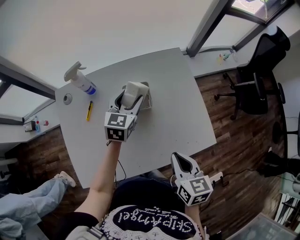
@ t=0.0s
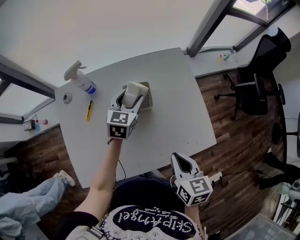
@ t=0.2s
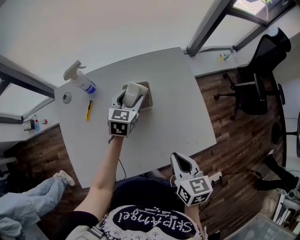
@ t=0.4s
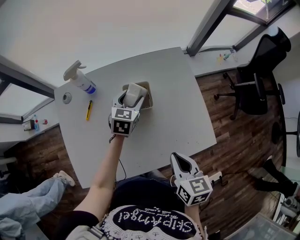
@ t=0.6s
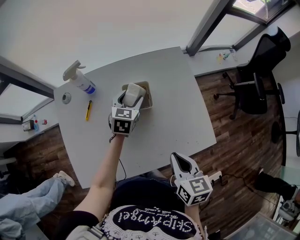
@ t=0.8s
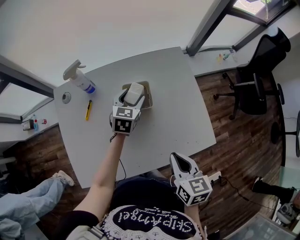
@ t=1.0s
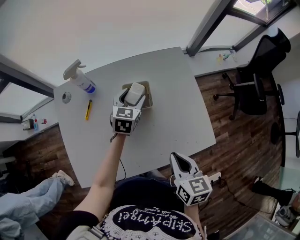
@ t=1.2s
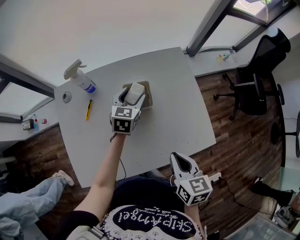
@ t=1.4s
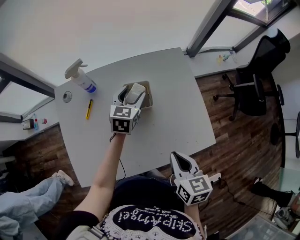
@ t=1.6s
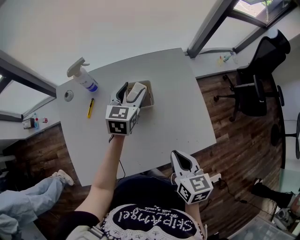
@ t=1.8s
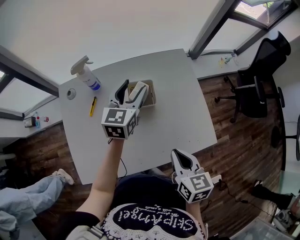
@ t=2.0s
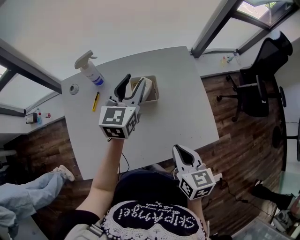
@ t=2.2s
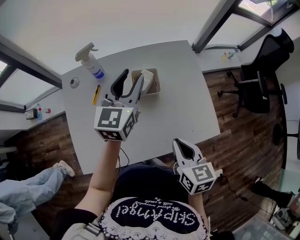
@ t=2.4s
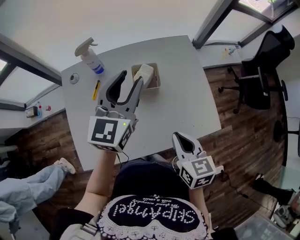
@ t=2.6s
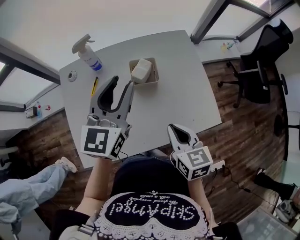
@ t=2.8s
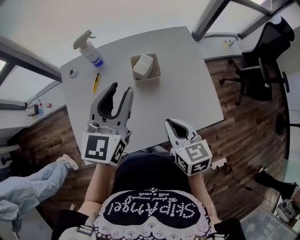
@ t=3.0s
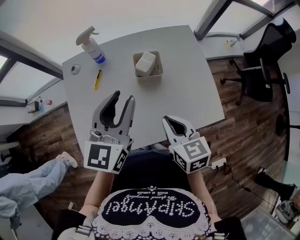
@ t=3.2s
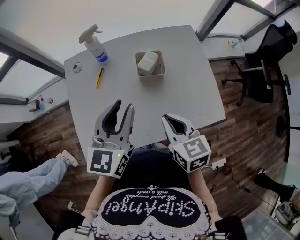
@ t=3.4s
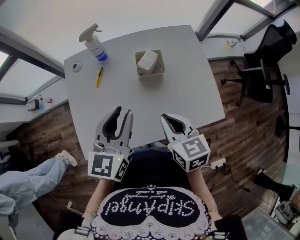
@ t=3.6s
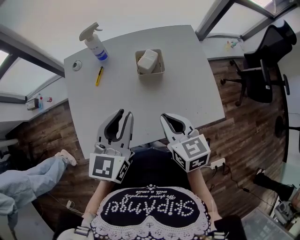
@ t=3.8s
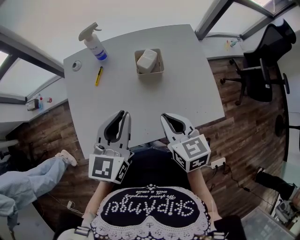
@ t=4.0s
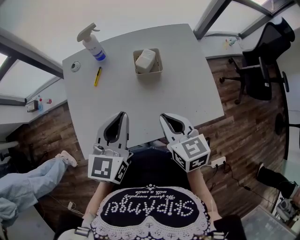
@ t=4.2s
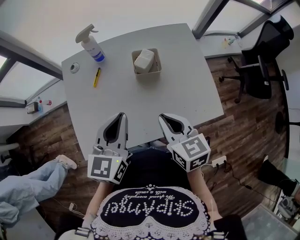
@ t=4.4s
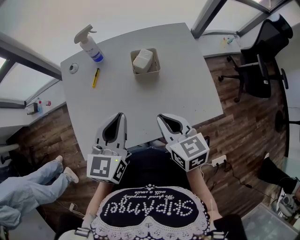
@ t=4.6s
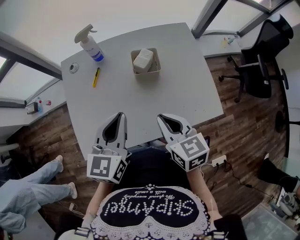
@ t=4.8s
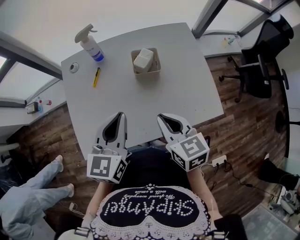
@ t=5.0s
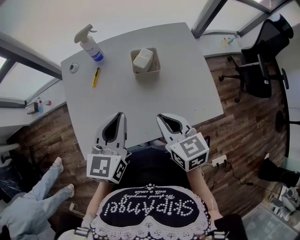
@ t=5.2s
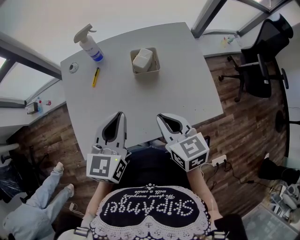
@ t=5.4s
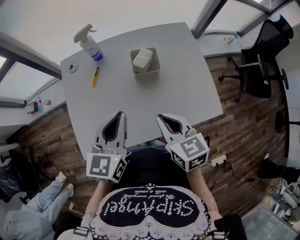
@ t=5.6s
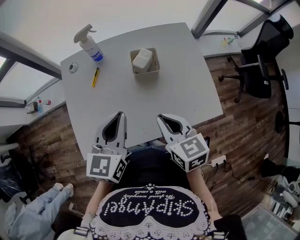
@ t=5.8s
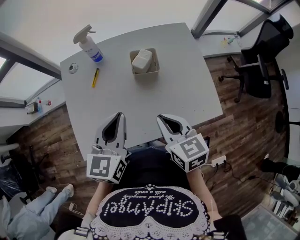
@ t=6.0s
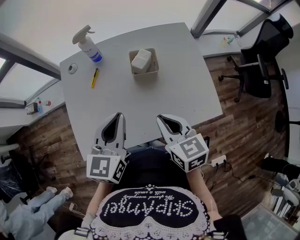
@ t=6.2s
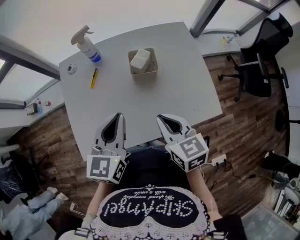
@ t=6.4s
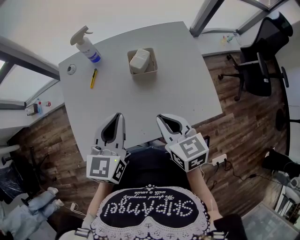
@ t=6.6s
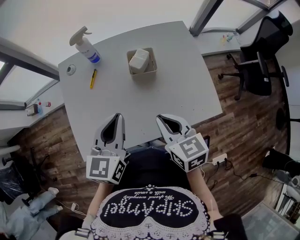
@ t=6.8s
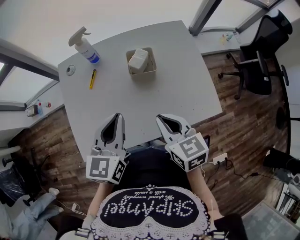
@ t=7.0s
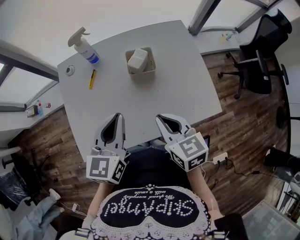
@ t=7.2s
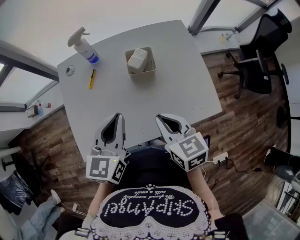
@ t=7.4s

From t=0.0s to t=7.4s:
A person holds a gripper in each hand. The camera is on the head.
From t=0.0s to t=1.4s: The grippers stay close to where they were, moving slightly.
From t=1.4s to t=3.0s: The left gripper travels upward and backward by approximately 25 cm, swivels about 20 degrees, and closes its fingers; the right gripper travels to the left by about 5 cm.
From t=3.0s to t=4.4s: The left gripper shifts roughly 10 cm backward, and closes its fingers.
From t=4.4s to t=7.4s: The two grippers keep their place.

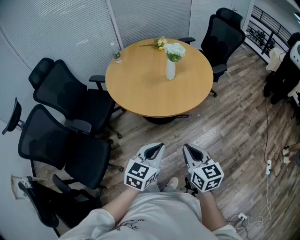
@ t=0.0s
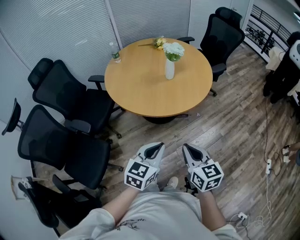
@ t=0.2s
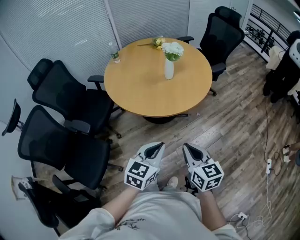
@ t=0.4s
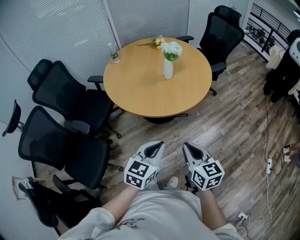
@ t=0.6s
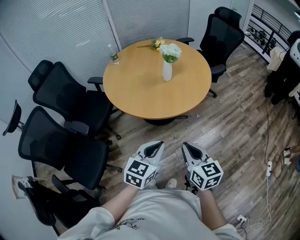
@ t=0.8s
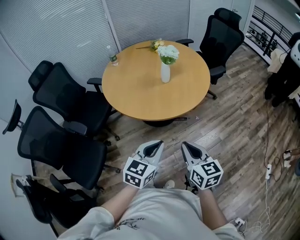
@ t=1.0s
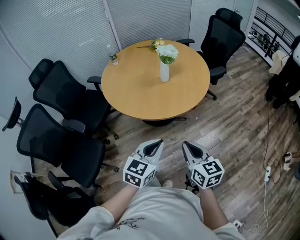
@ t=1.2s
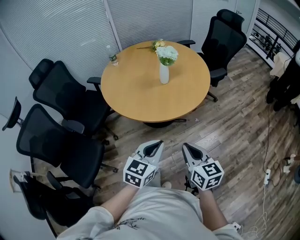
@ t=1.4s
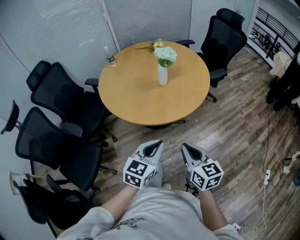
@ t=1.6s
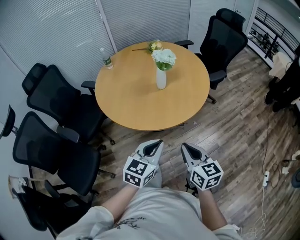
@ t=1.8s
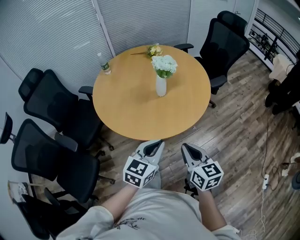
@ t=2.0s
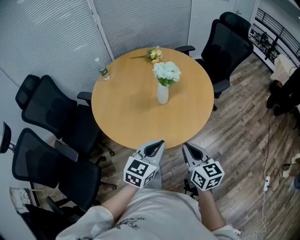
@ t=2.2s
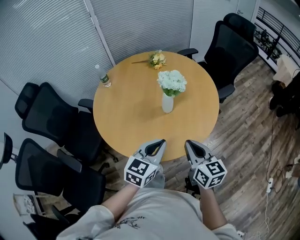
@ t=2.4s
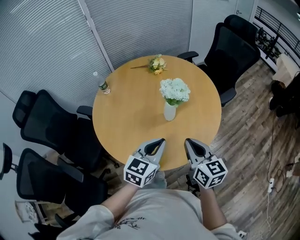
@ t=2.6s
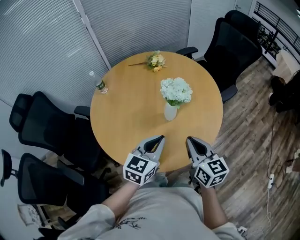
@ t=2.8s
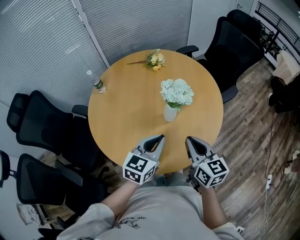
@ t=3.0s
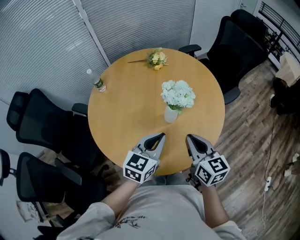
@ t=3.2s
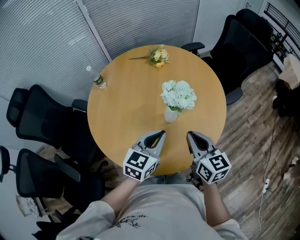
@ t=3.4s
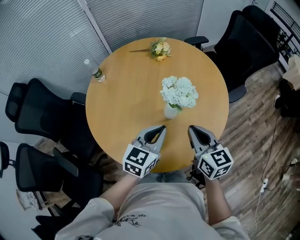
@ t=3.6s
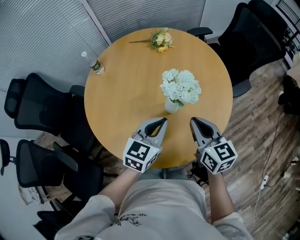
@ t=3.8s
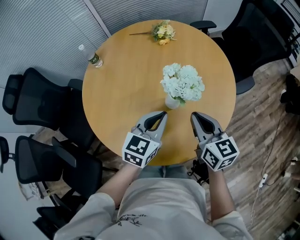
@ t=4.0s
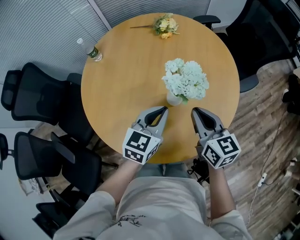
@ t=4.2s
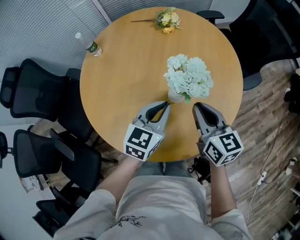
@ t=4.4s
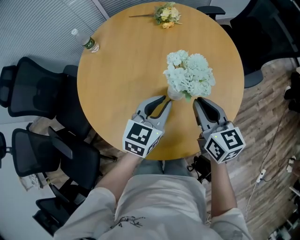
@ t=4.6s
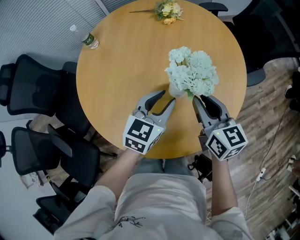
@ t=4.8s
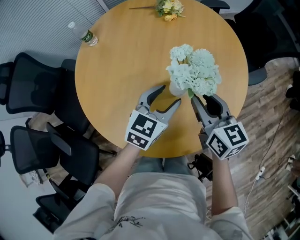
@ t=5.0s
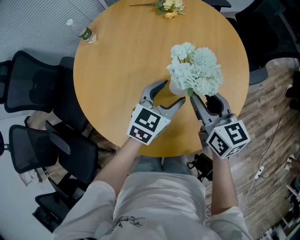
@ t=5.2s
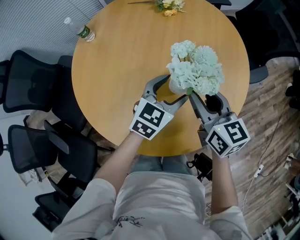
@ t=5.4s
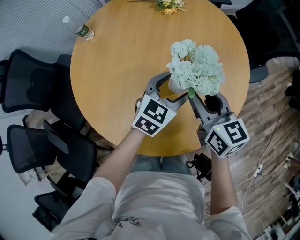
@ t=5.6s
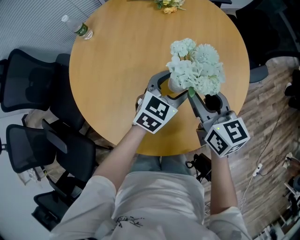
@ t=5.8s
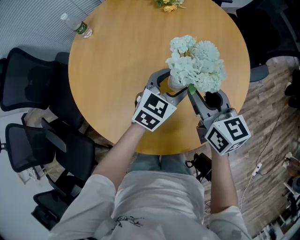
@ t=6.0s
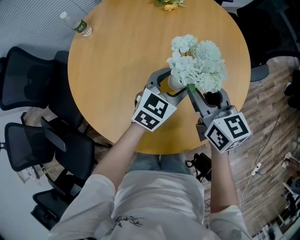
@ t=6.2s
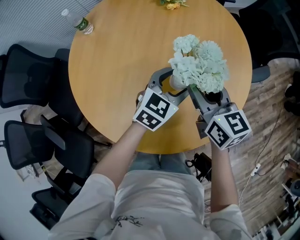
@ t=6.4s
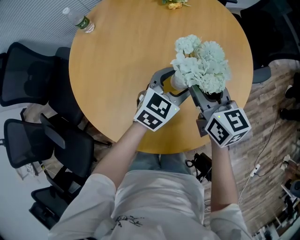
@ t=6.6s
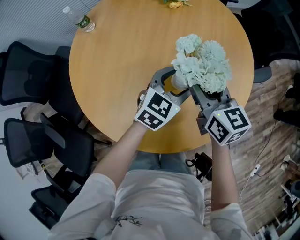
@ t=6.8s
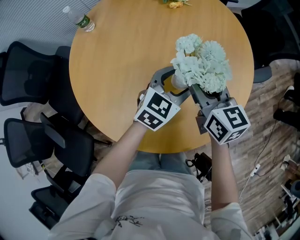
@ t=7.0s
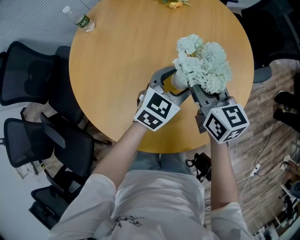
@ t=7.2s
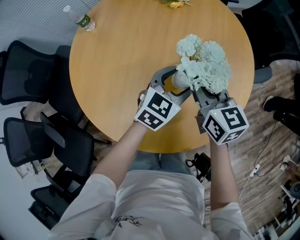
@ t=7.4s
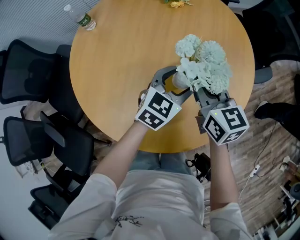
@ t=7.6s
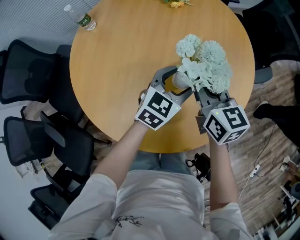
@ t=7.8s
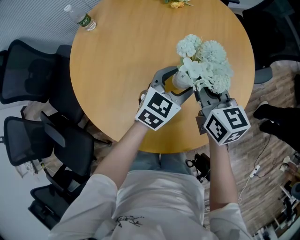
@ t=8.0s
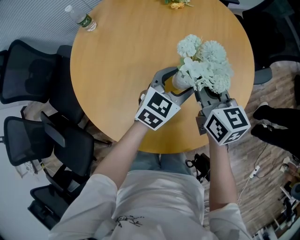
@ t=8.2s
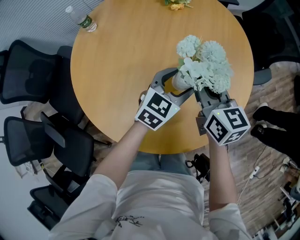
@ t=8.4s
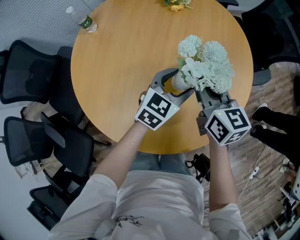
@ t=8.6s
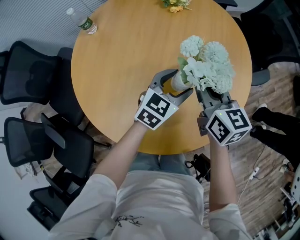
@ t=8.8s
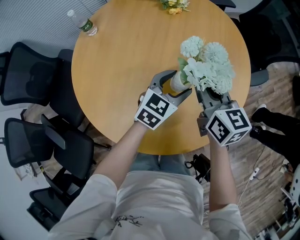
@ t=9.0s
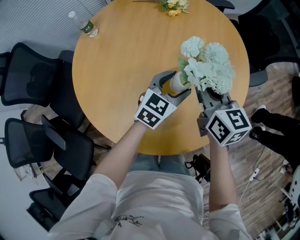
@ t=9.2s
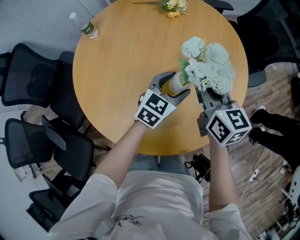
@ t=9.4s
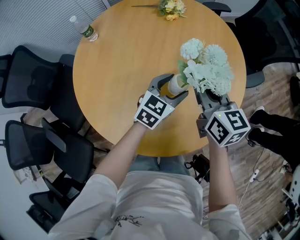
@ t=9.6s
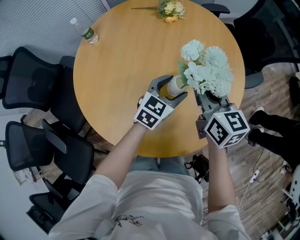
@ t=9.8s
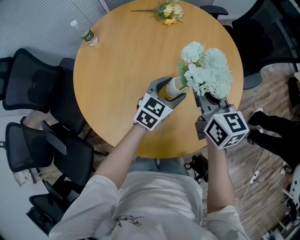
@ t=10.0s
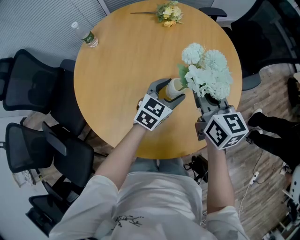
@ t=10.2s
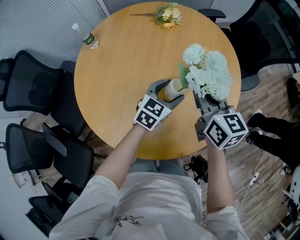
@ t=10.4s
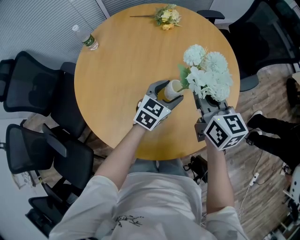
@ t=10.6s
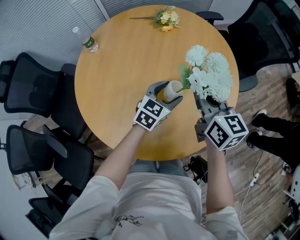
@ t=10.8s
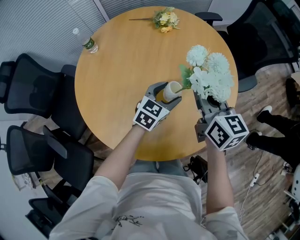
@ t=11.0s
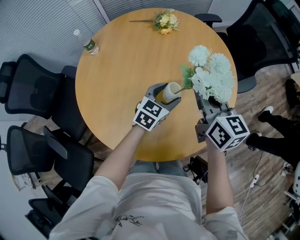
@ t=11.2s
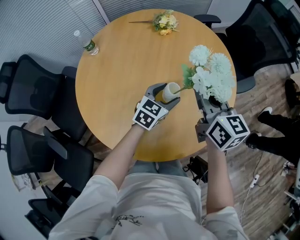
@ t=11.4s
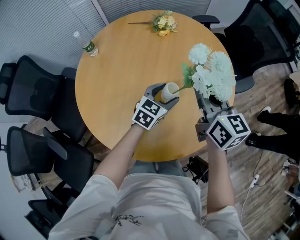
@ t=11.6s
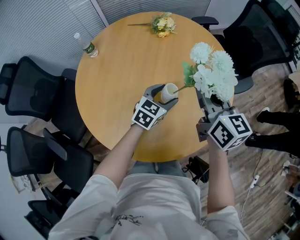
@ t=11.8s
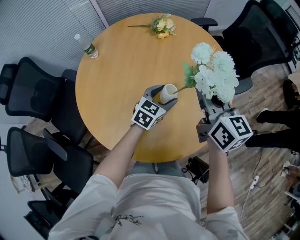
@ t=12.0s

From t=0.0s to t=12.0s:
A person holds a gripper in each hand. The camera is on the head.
From t=0.0s to t=1.6s: The left gripper moves forward and to the right, some 10 cm. Meanwhile the right gripper is displaced to the right and forward by approximately 10 cm.
From t=1.6s to t=3.0s: The grippers both shift forward by about 35 cm.
From t=3.0s to t=4.4s: Both grippers travel together forward and downward, about 15 cm.
From t=4.4s to t=6.0s: The left gripper travels downward and forward by about 10 cm, and opens up, while the right gripper shifts by about 5 cm, and opens.
From t=6.0s to t=10.4s: The grippers move only a little.
From t=10.4s to t=12.0s: The right gripper travels upward by about 5 cm.

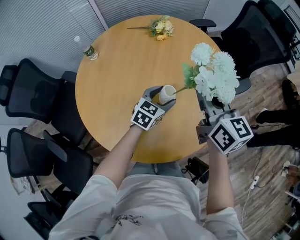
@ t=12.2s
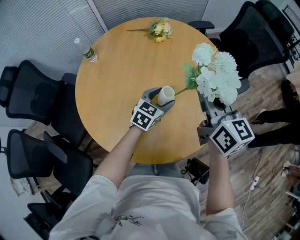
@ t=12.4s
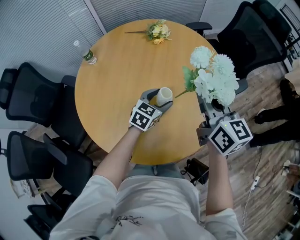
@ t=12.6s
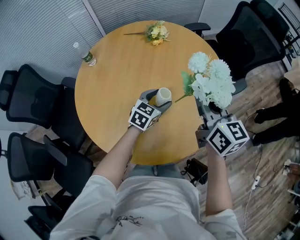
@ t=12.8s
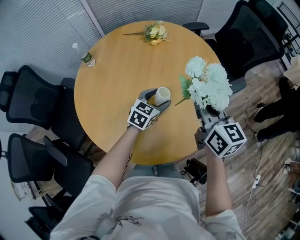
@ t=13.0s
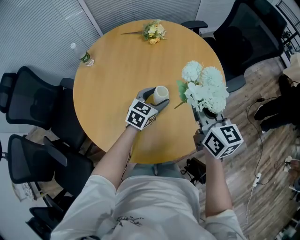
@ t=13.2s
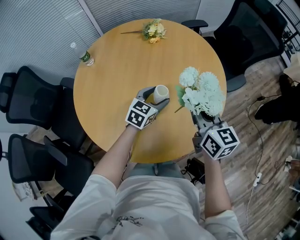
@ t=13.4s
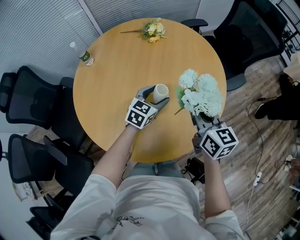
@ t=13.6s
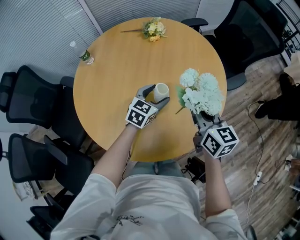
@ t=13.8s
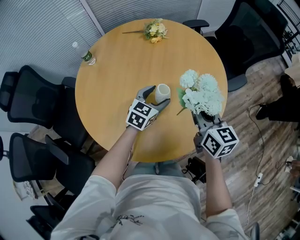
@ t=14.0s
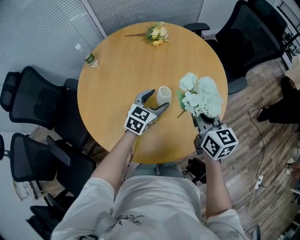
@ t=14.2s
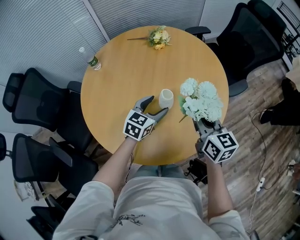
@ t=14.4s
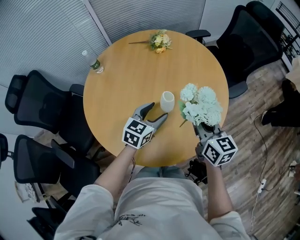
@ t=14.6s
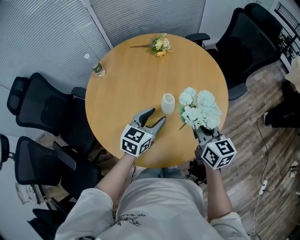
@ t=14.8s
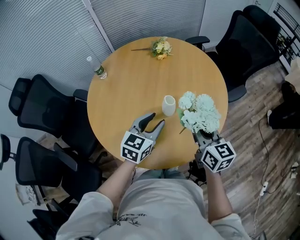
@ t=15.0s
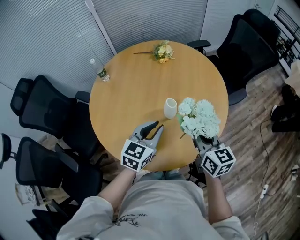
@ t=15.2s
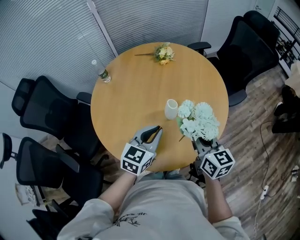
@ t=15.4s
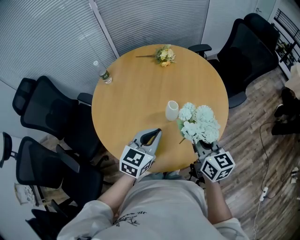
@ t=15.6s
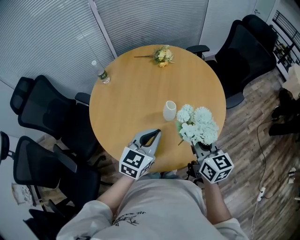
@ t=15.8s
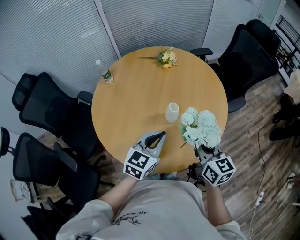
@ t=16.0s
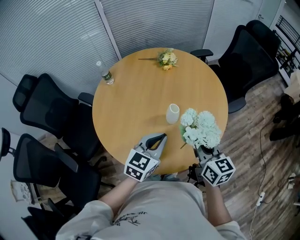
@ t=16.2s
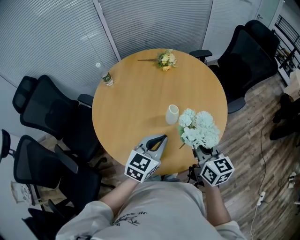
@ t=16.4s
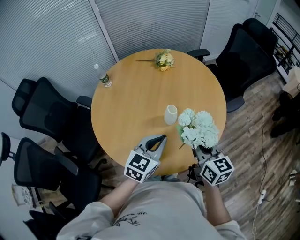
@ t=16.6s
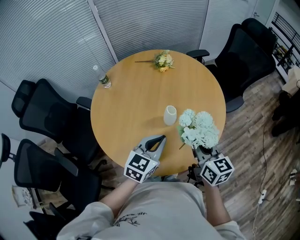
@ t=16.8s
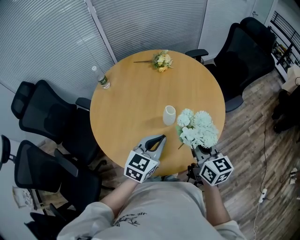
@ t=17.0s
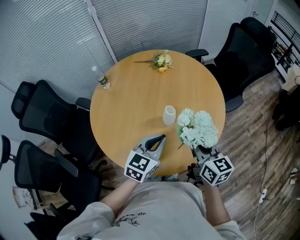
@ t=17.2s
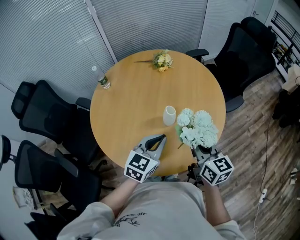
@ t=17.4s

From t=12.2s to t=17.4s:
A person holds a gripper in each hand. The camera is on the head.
From t=12.2s to t=14.0s: The right gripper heads downward, covering about 10 cm.
From t=14.0s to t=15.6s: The right gripper goes roughly 10 cm backward. The left gripper travels backward and upward by approximately 20 cm, and closes its fingers.
From t=15.6s to t=17.4s: The grippers stay close to where they were, moving slightly.
